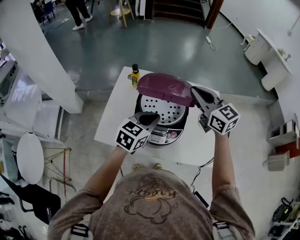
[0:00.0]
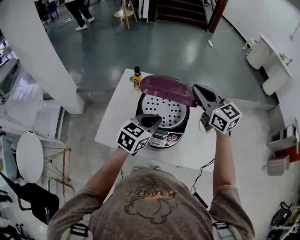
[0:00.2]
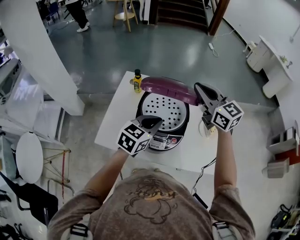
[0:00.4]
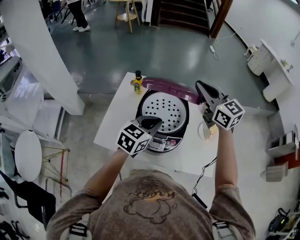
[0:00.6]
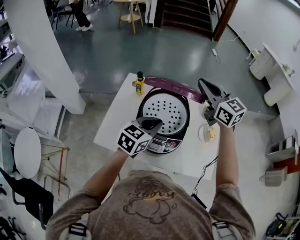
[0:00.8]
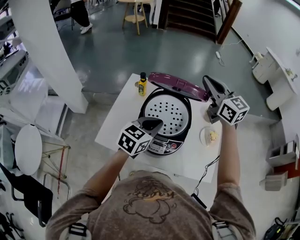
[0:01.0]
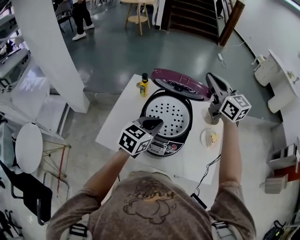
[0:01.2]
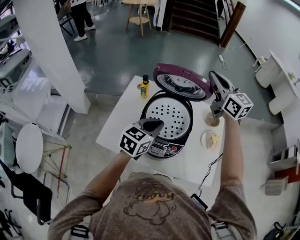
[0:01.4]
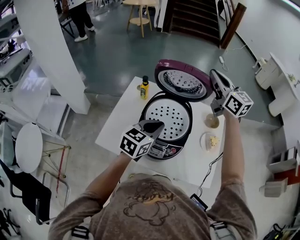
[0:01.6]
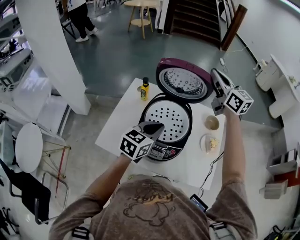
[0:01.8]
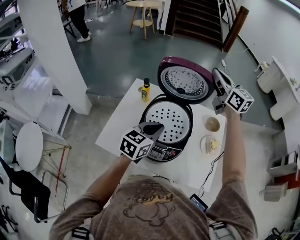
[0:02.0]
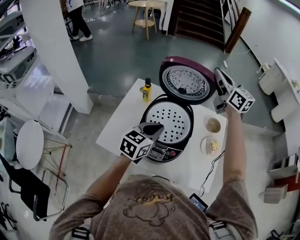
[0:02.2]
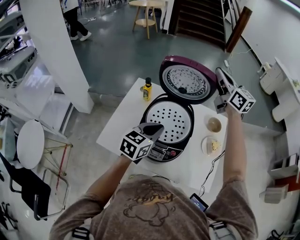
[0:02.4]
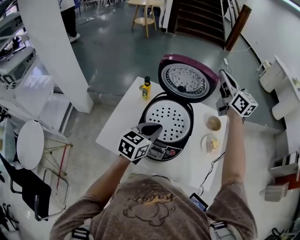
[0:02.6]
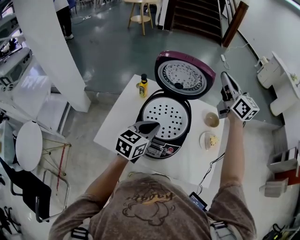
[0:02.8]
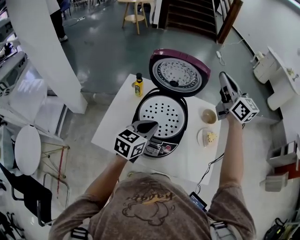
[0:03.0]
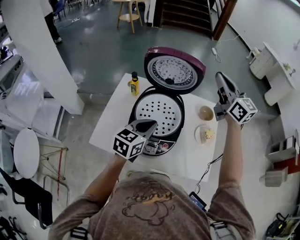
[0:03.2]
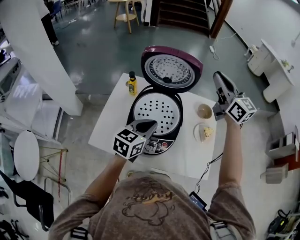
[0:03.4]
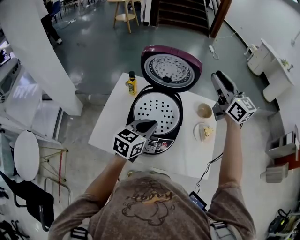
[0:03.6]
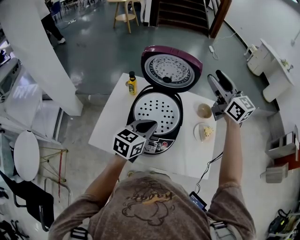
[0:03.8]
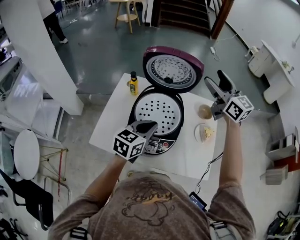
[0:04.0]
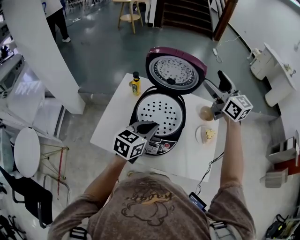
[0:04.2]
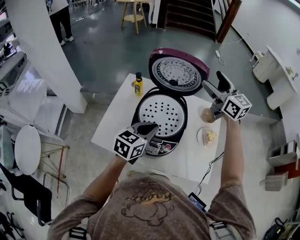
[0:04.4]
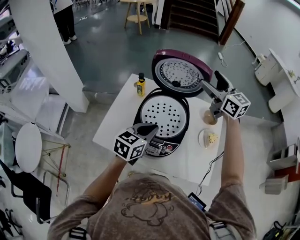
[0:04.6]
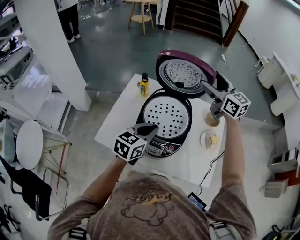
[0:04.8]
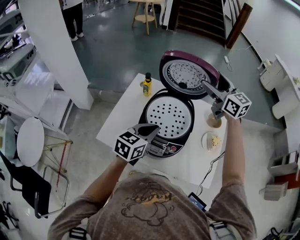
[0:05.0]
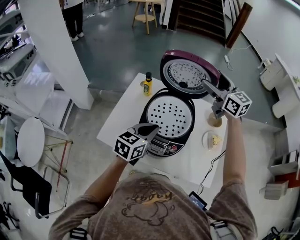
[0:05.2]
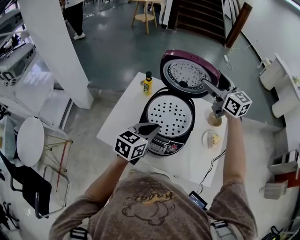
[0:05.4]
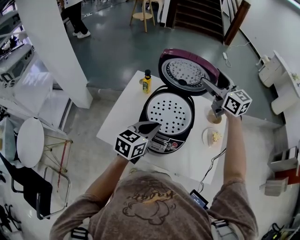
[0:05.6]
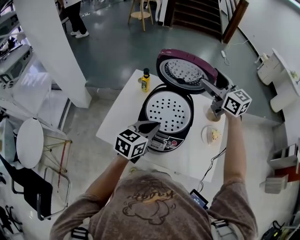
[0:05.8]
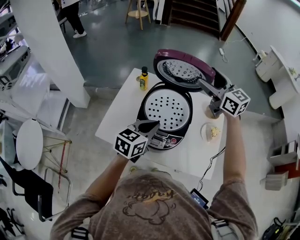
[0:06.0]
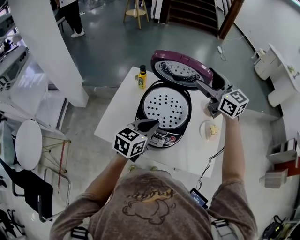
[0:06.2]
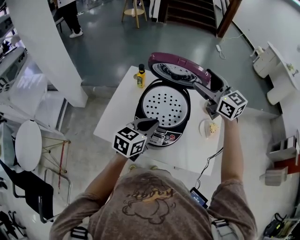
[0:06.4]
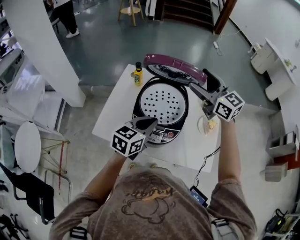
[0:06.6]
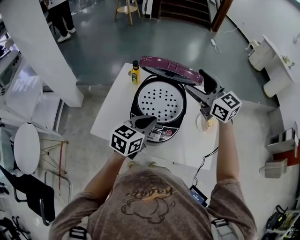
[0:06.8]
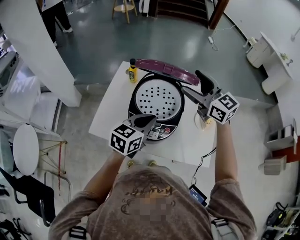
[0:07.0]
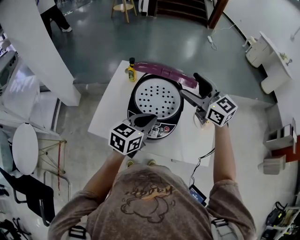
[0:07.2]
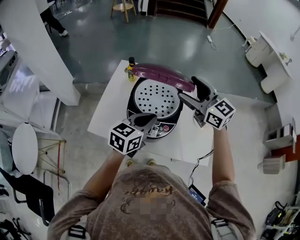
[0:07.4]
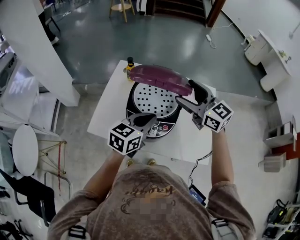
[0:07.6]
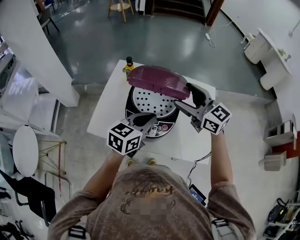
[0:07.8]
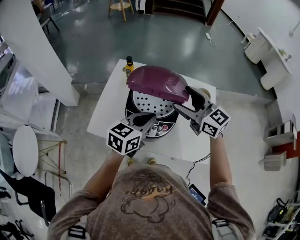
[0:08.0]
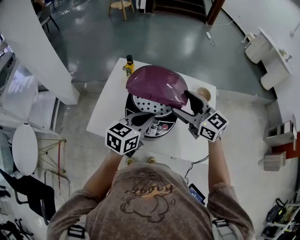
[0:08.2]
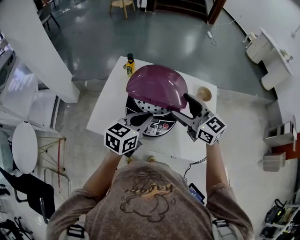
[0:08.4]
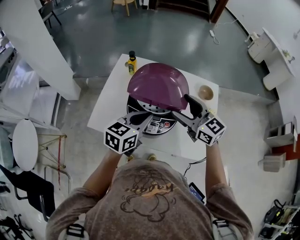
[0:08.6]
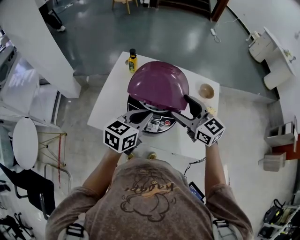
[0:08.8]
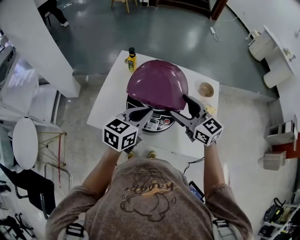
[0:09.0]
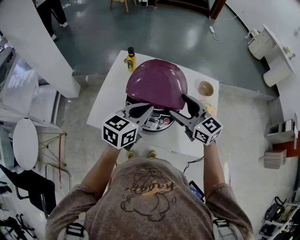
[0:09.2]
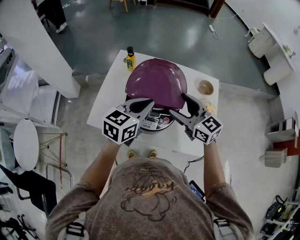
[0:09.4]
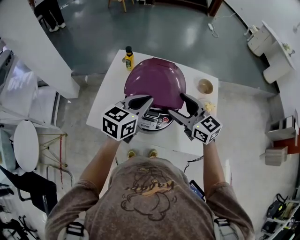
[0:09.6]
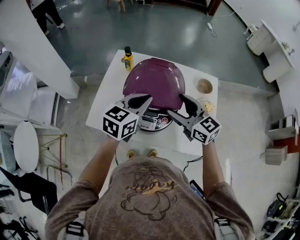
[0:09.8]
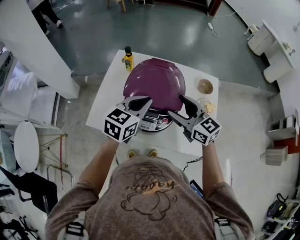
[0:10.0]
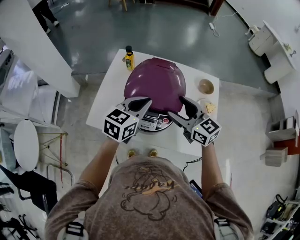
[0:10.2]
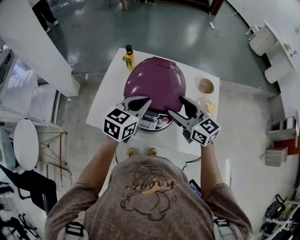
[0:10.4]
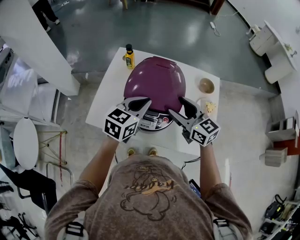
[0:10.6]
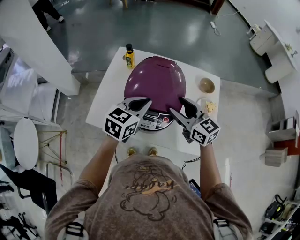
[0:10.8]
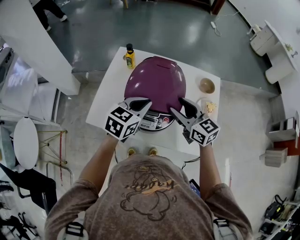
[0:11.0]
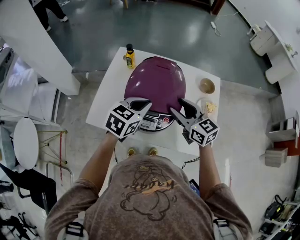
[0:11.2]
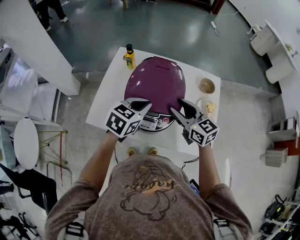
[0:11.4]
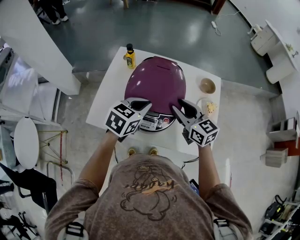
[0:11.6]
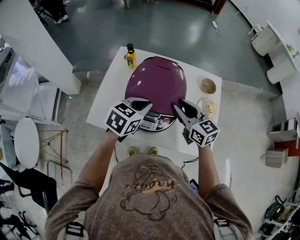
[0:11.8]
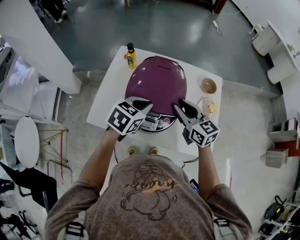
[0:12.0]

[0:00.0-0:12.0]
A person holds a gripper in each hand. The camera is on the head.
0:00.0 to 0:01.6: The right gripper moves forward and upward, about 15 cm.
0:01.6 to 0:03.0: The right gripper moves to the right, roughly 5 cm.
0:03.0 to 0:04.4: The right gripper ends up about 5 cm from where it was, and opens up.
0:04.4 to 0:06.0: The right gripper travels to the left by roughly 5 cm.
0:06.0 to 0:07.6: The right gripper shifts approximately 15 cm backward and downward.
0:07.6 to 0:09.0: The right gripper shifts roughly 10 cm downward and backward.
0:09.0 to 0:10.4: The grippers stay close to where they were, moving slightly.
0:10.4 to 0:12.0: The left gripper changes its angle by some 20 degrees; the right gripper closes up.

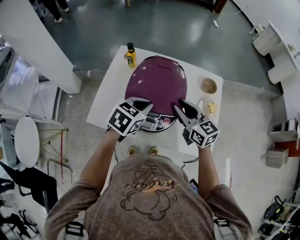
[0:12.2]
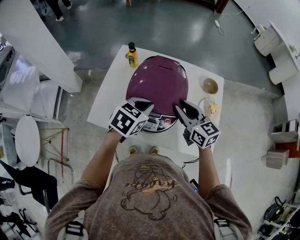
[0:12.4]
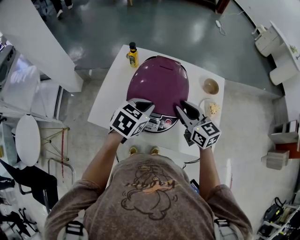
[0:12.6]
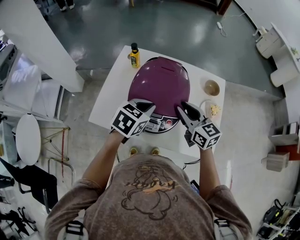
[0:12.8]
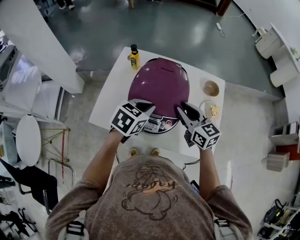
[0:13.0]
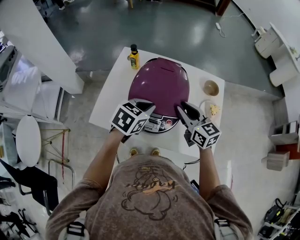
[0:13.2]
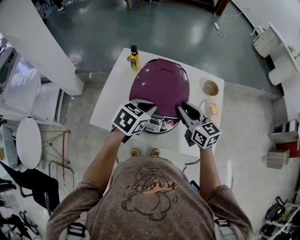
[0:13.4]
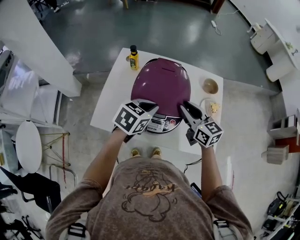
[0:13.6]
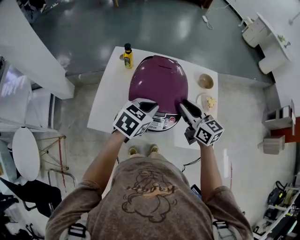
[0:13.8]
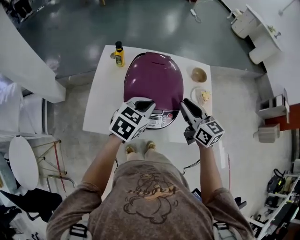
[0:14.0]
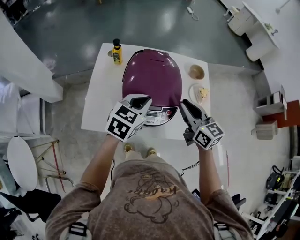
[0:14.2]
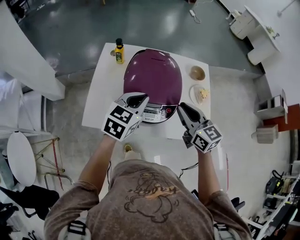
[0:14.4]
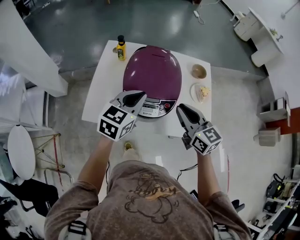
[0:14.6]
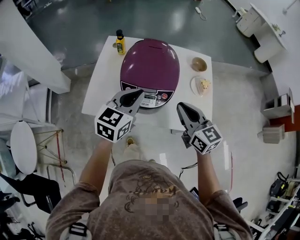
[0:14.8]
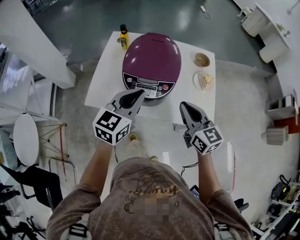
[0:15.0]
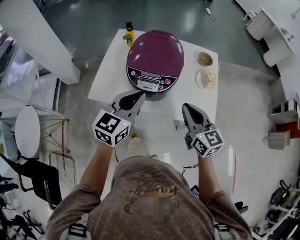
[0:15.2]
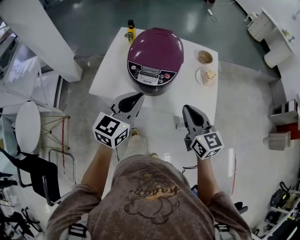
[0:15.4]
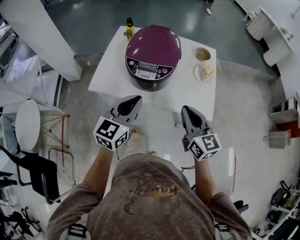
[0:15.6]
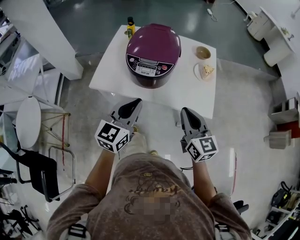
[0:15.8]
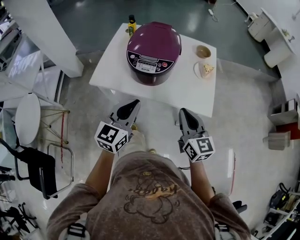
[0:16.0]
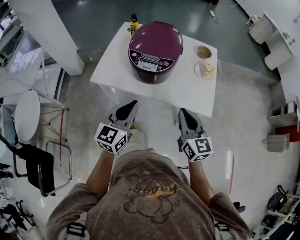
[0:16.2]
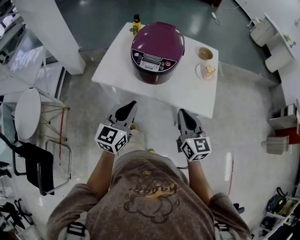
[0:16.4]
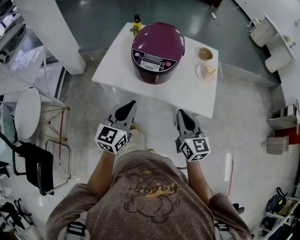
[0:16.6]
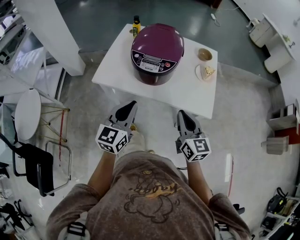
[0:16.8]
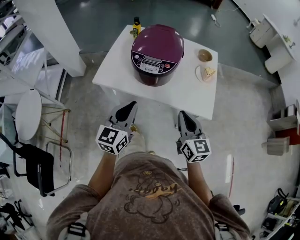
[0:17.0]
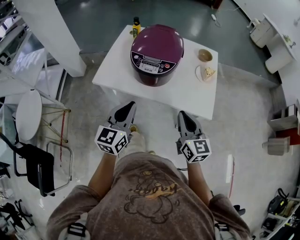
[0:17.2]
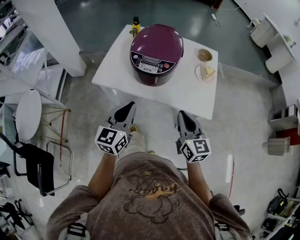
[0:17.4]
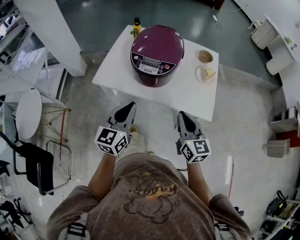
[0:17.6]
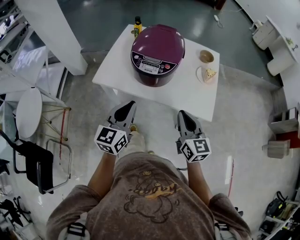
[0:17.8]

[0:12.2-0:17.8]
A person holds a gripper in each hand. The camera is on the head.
0:12.2 to 0:13.6: There are only small adjustments of the grippers.
0:13.6 to 0:15.0: The left gripper shifts about 10 cm backward and upward, and changes its angle by some 30 degrees. The right gripper shifts approximately 15 cm backward.
0:15.0 to 0:16.4: The two grippers go approximately 15 cm backward.
0:16.4 to 0:17.8: Both grippers stay put.

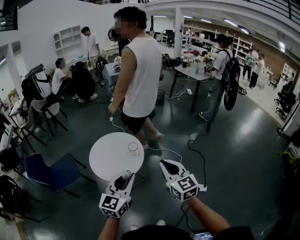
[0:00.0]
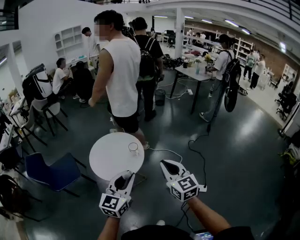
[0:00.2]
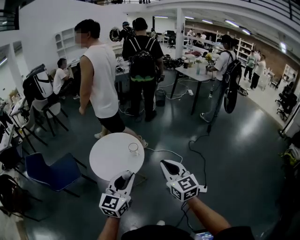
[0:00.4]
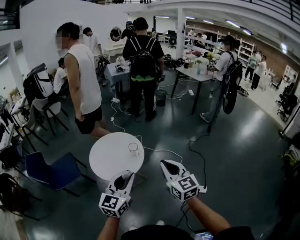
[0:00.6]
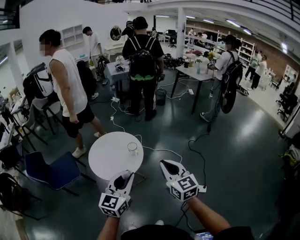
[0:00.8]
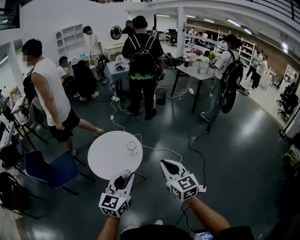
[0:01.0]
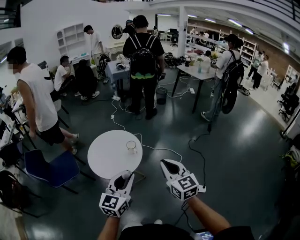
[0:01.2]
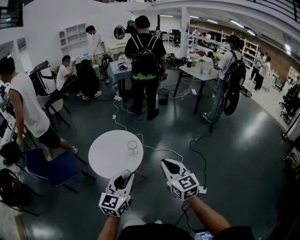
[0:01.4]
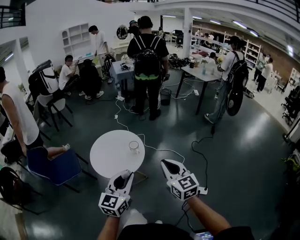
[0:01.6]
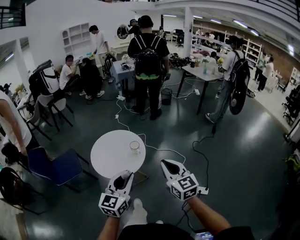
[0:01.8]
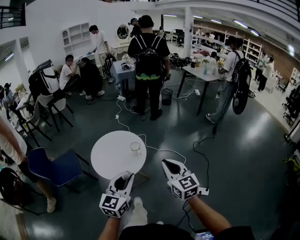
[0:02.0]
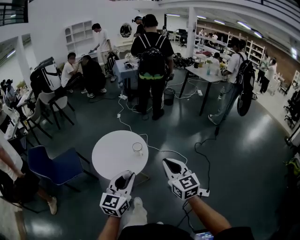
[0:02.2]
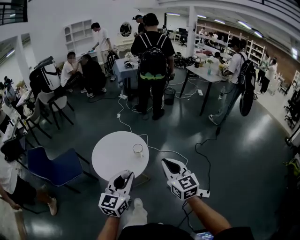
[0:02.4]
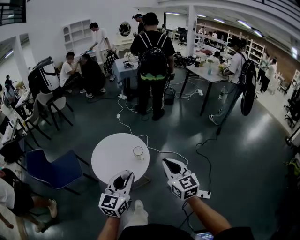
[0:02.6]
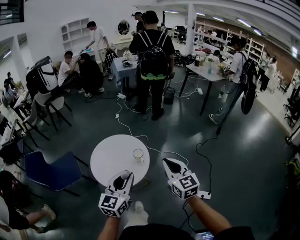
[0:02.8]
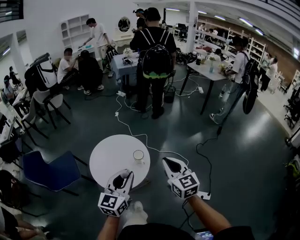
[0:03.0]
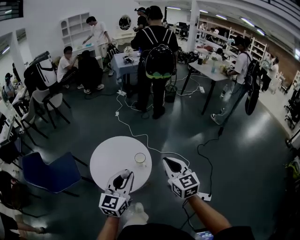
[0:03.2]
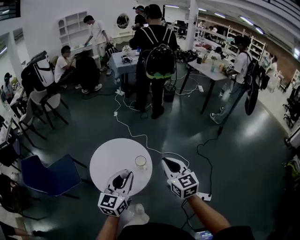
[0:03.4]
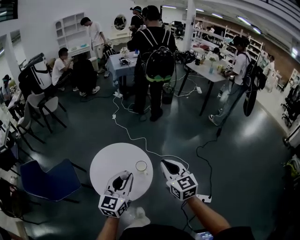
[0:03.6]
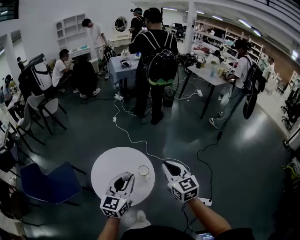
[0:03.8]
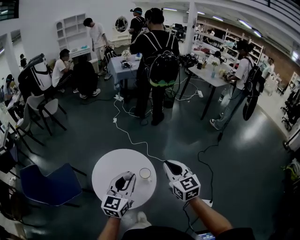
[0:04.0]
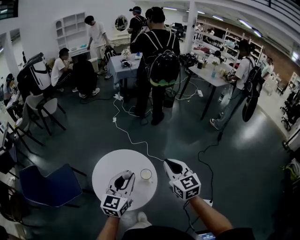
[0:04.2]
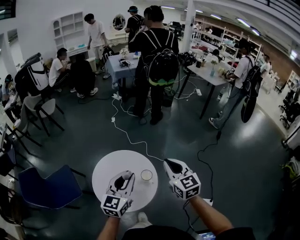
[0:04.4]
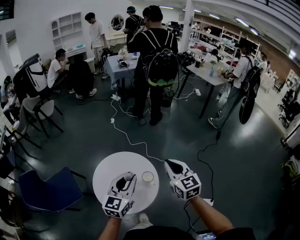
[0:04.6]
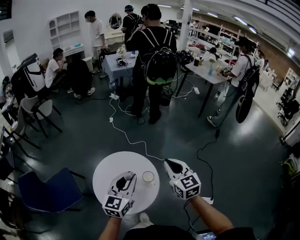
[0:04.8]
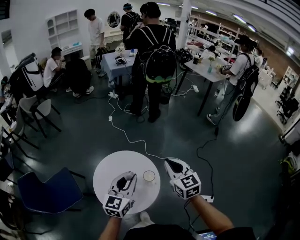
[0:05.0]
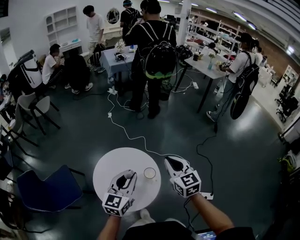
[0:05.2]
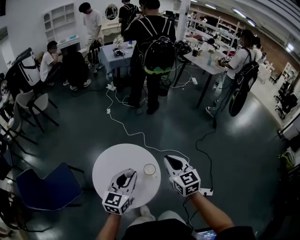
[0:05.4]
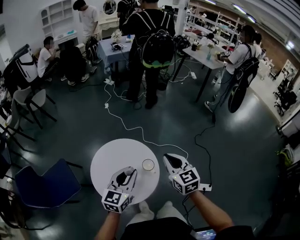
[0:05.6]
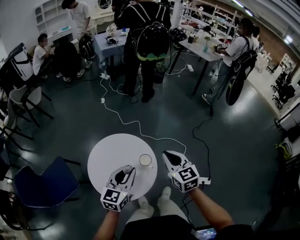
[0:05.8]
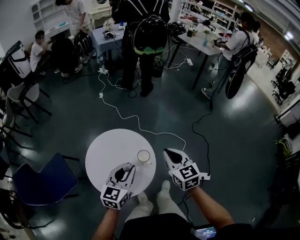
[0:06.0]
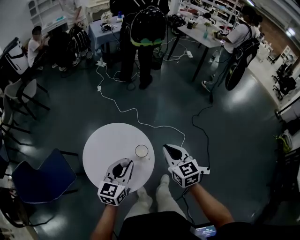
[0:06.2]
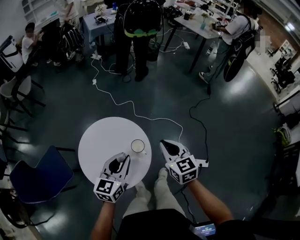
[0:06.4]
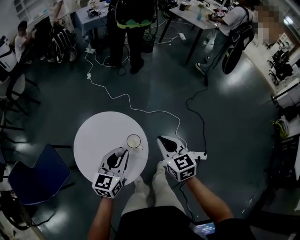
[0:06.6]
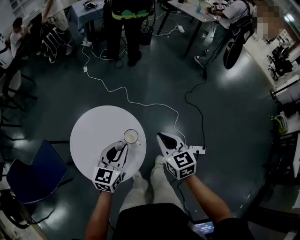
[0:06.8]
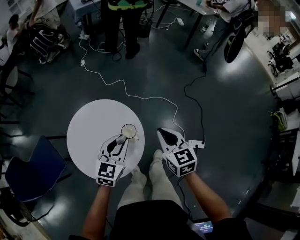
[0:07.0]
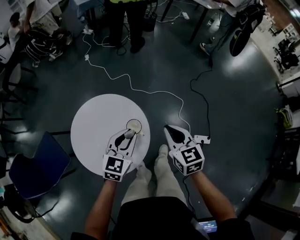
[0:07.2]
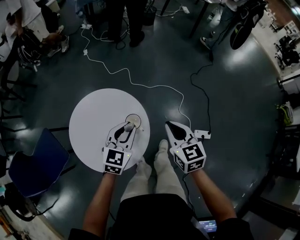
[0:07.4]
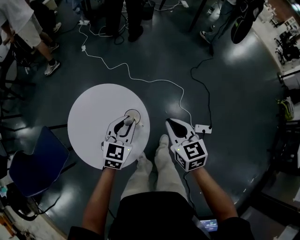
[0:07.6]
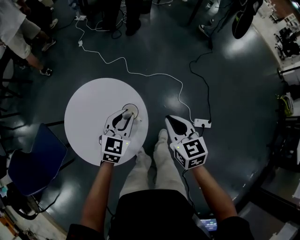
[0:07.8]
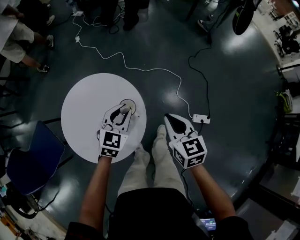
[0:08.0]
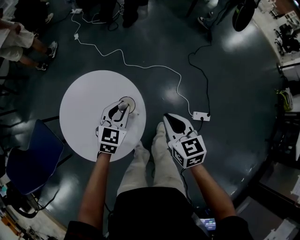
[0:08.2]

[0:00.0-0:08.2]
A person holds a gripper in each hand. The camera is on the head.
0:00.0 to 0:01.6: The grippers make only small movements.
0:01.6 to 0:03.2: The two grippers go about 25 cm forward.
0:03.2 to 0:05.0: Both grippers move forward and to the left, roughly 20 cm.
0:05.0 to 0:06.6: The right gripper is displaced downward by roughly 15 cm. Meanwhile the left gripper heads downward and to the right, covering roughly 15 cm.
0:06.6 to 0:08.2: The right gripper is displaced downward and to the right by about 15 cm. Meanwhile the left gripper is displaced downward and forward by some 20 cm, and swivels roughly 20 degrees.
